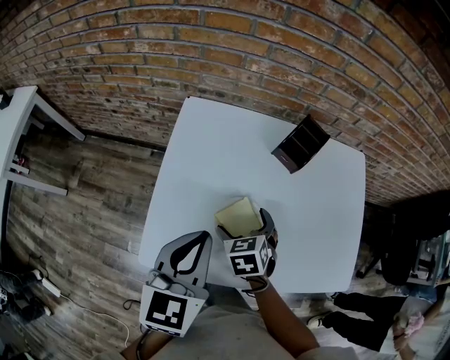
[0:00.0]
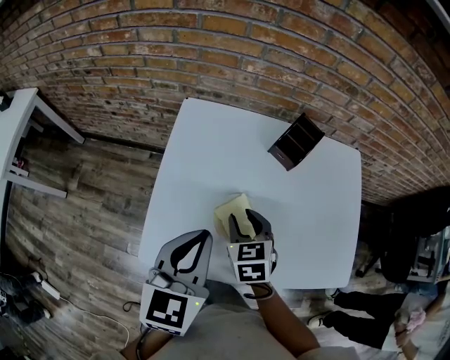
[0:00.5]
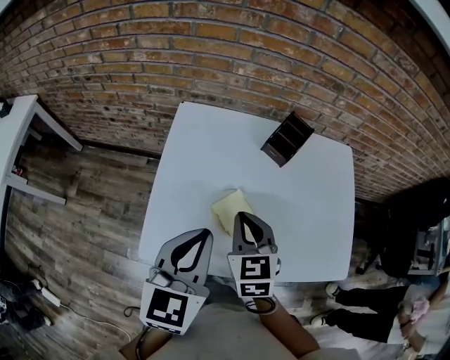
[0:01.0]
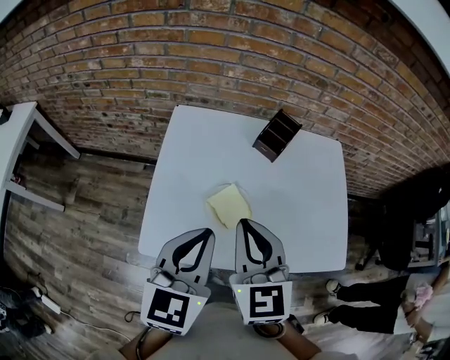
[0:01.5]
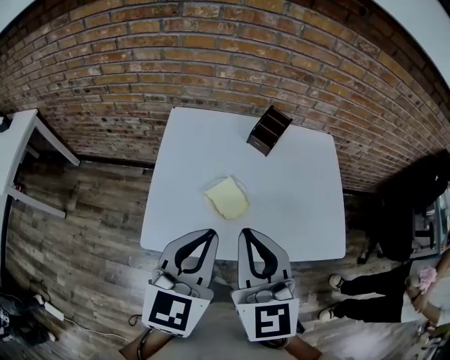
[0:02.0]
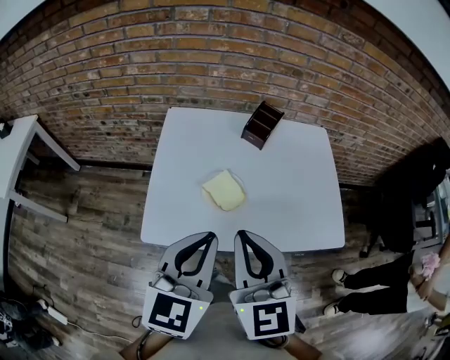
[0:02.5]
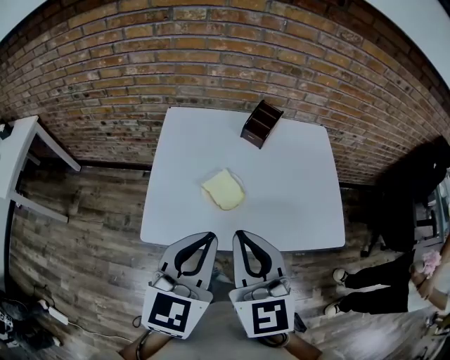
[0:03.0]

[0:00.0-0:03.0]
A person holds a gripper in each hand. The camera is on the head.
0:00.0 to 0:01.5: The left gripper goes roughly 10 cm backward and upward, while the right gripper heads upward and backward, covering some 25 cm, points its fingers roughly 40 degrees further upward, and closes up.
0:01.5 to 0:03.0: The two grippers go some 10 cm backward.

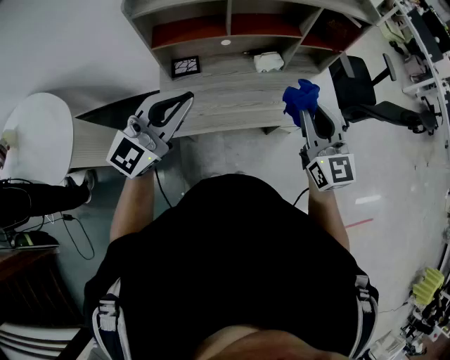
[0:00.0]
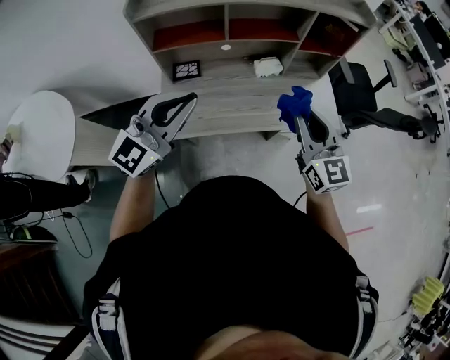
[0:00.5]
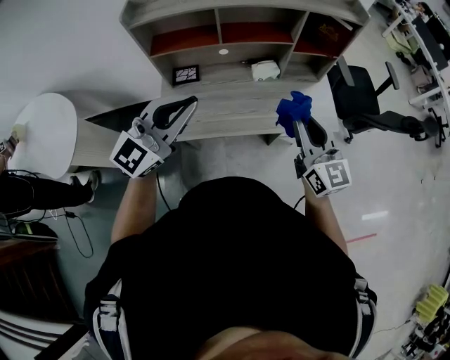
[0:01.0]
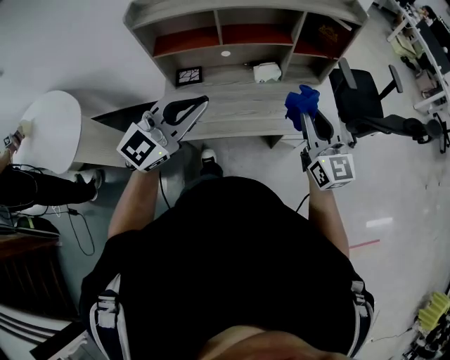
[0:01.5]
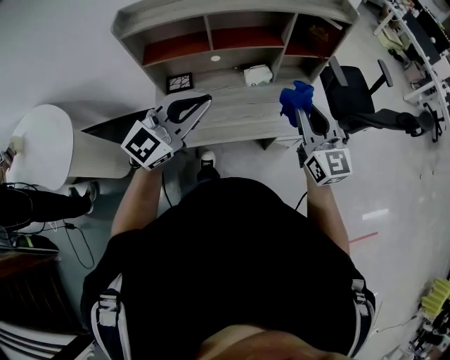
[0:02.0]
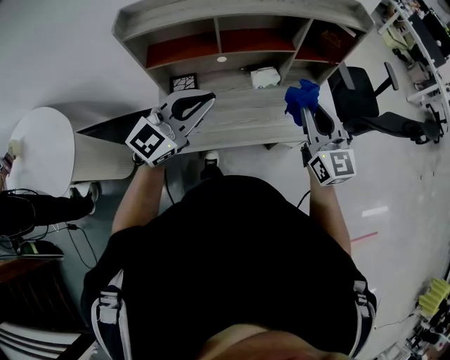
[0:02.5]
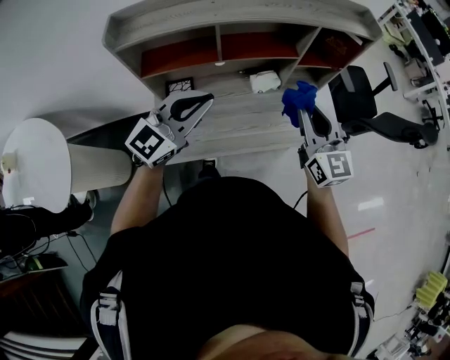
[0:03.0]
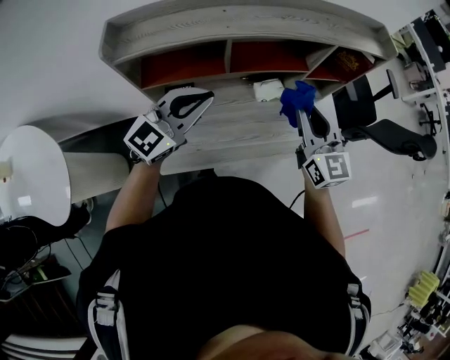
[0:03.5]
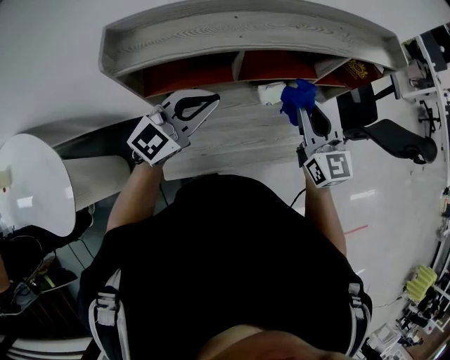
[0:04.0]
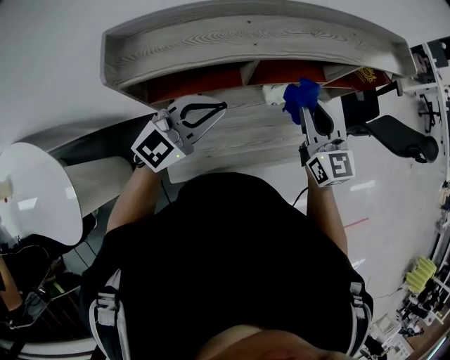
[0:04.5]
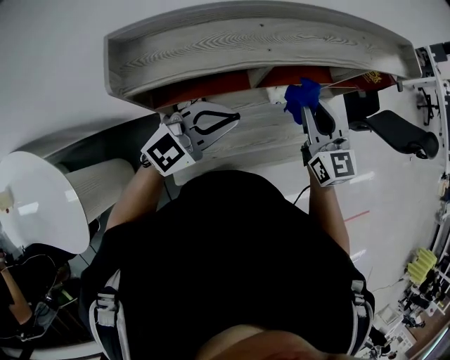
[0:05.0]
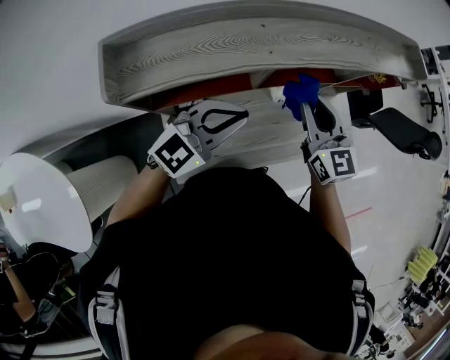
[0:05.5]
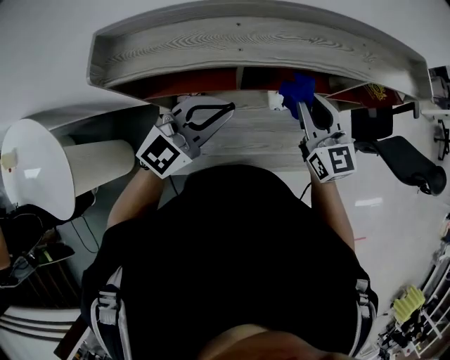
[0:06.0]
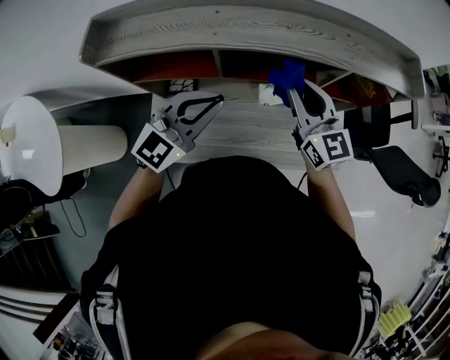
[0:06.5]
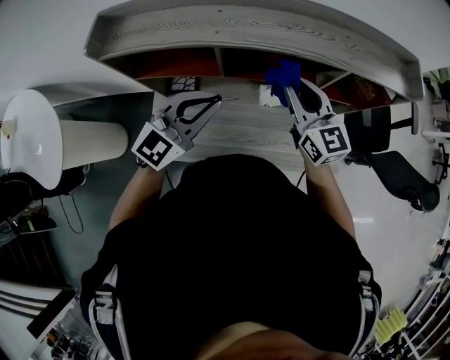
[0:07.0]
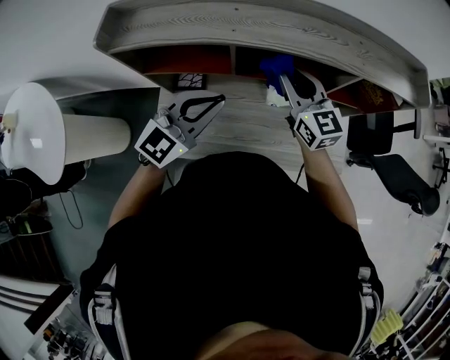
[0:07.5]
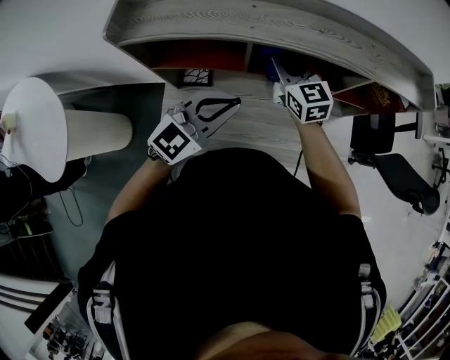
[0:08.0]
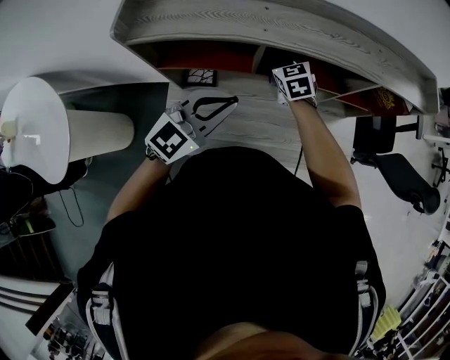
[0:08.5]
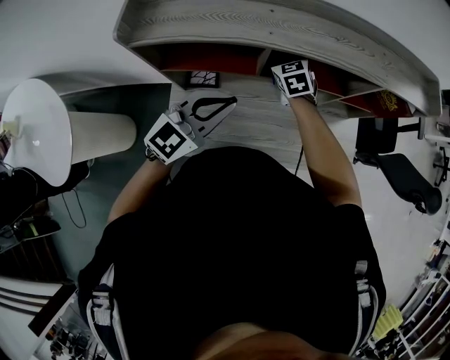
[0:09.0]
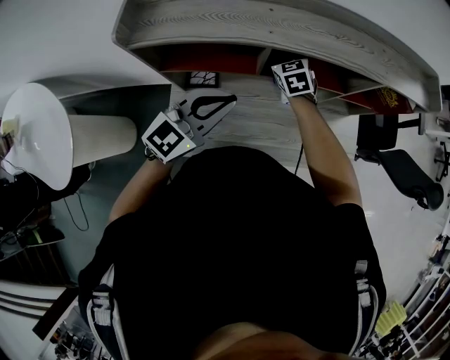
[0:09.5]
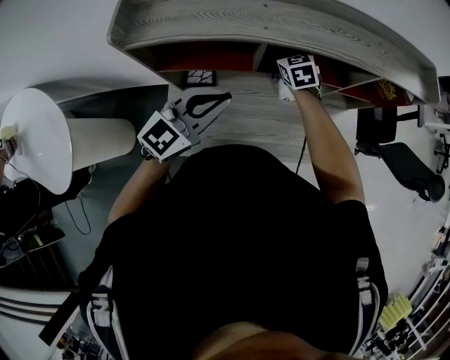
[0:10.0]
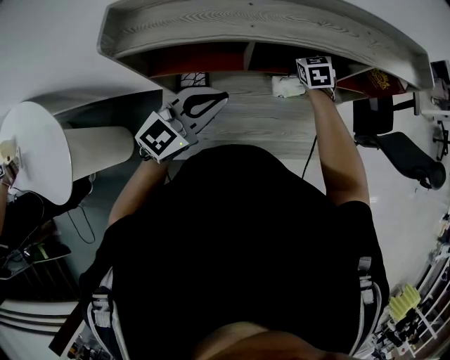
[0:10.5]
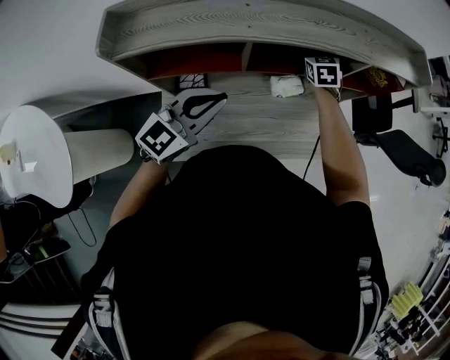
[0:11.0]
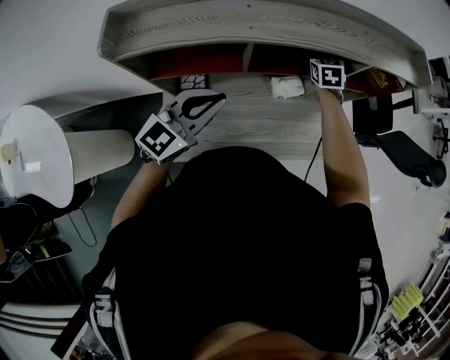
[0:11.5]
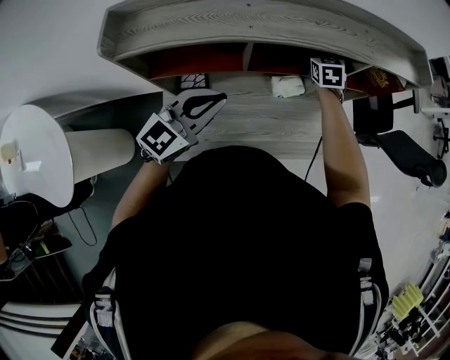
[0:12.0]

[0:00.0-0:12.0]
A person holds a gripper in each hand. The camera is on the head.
0:00.0 to 0:02.0: Both grippers move to the right, some 10 cm.
0:02.0 to 0:04.0: Both grippers travel together forward and to the left, roughly 25 cm.
0:04.0 to 0:06.0: The right gripper is displaced forward by about 10 cm. The left gripper goes some 5 cm forward.
0:06.0 to 0:08.0: The right gripper shifts some 10 cm to the left and forward.
0:08.0 to 0:10.0: The right gripper is displaced downward and forward by about 10 cm, and changes its angle by some 30 degrees. Meanwhile the left gripper shifts approximately 5 cm to the left.
0:10.0 to 0:12.0: The right gripper moves to the right and forward, about 15 cm.

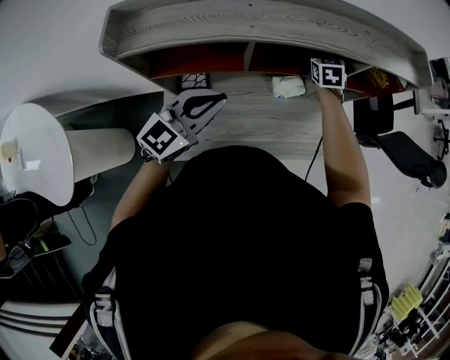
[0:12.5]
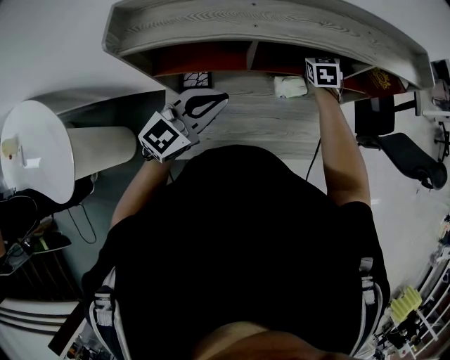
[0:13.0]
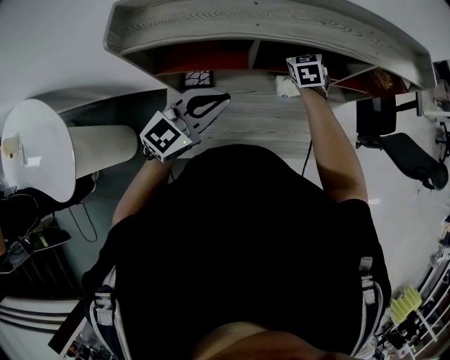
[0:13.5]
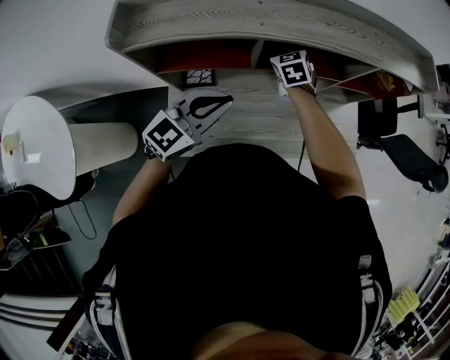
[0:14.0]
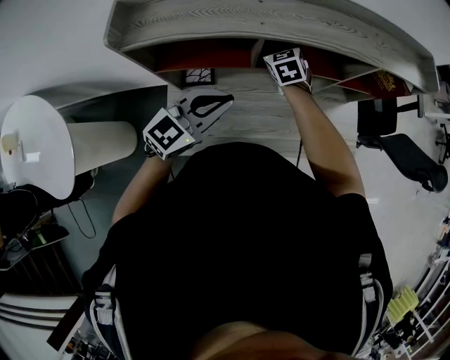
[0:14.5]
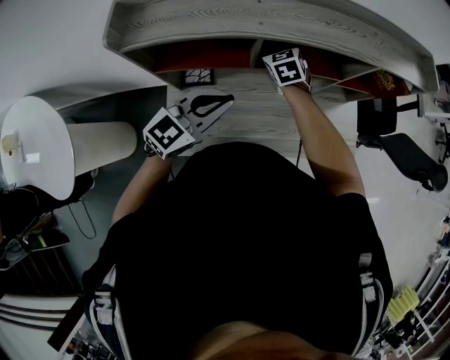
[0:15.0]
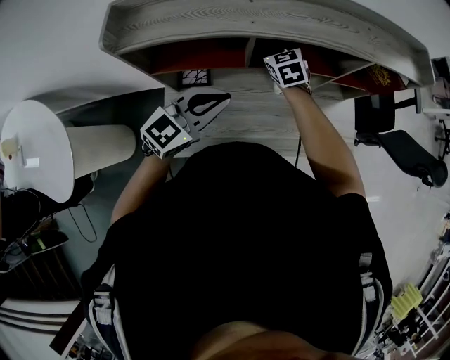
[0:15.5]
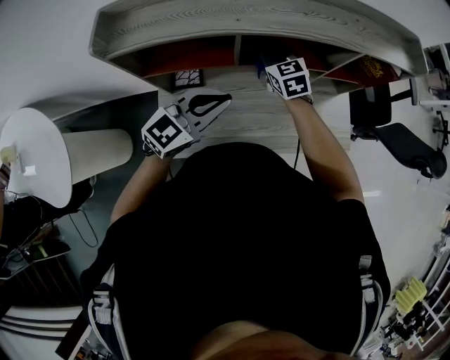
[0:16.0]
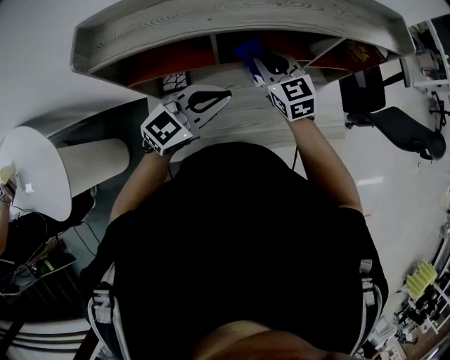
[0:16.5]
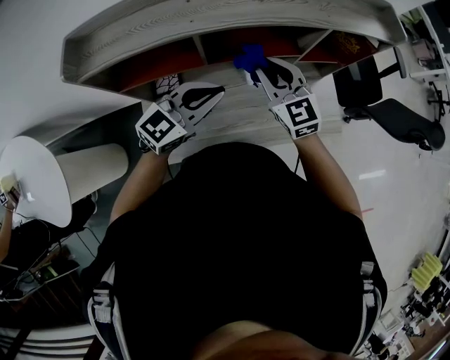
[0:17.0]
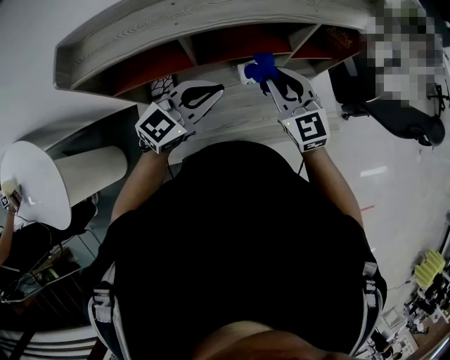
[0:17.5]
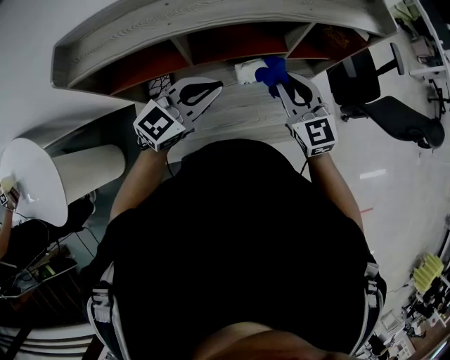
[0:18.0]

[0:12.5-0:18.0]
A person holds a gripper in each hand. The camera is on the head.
0:12.5 to 0:14.5: The right gripper moves to the left and backward, approximately 20 cm.
0:14.5 to 0:16.0: The right gripper ends up roughly 5 cm from where it was.
0:16.0 to 0:18.0: The right gripper travels to the right, backward and upward by roughly 25 cm; the left gripper goes some 10 cm to the right.

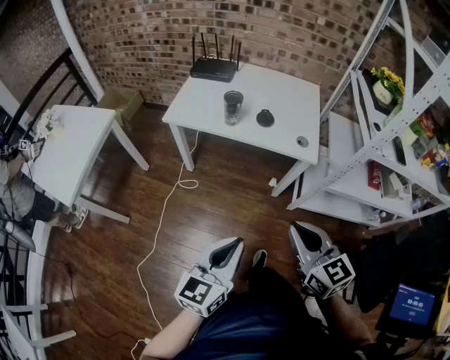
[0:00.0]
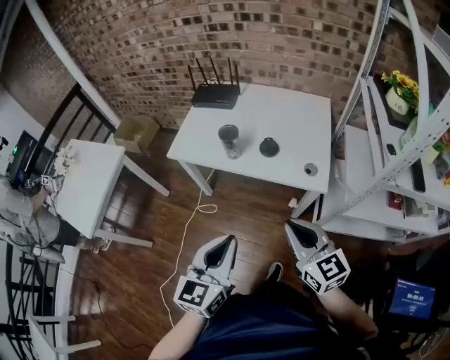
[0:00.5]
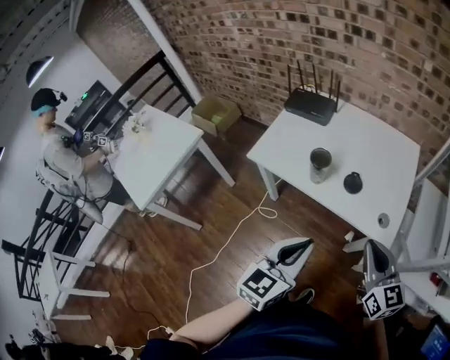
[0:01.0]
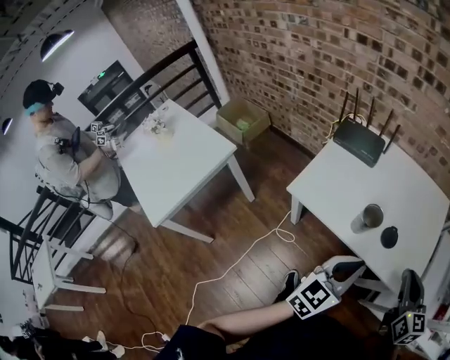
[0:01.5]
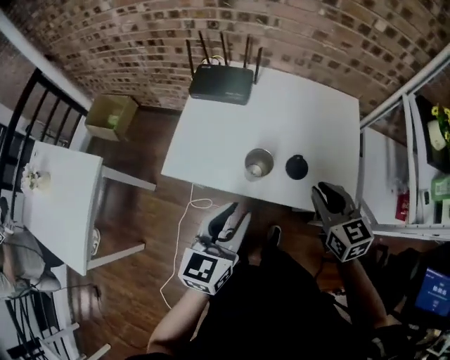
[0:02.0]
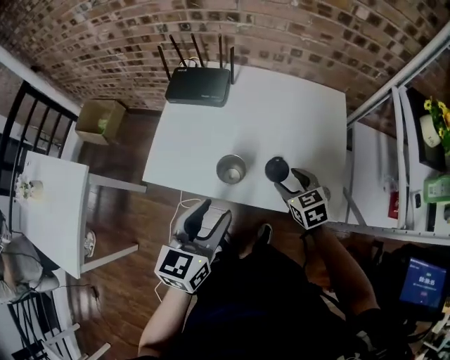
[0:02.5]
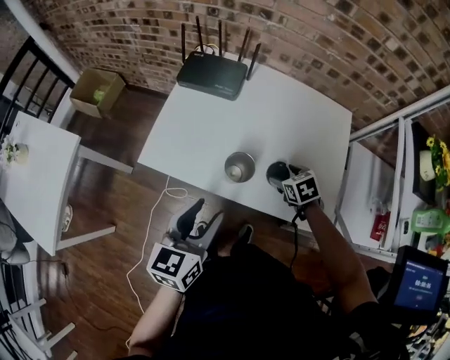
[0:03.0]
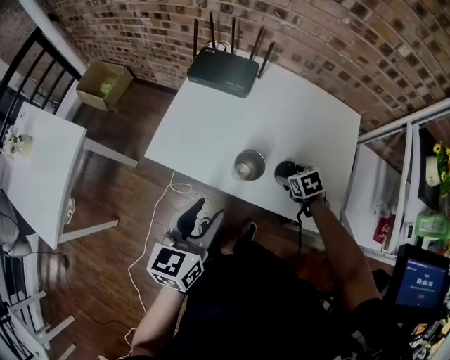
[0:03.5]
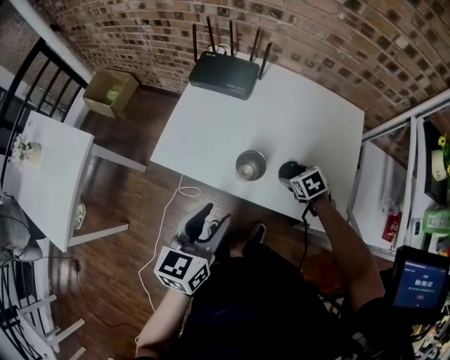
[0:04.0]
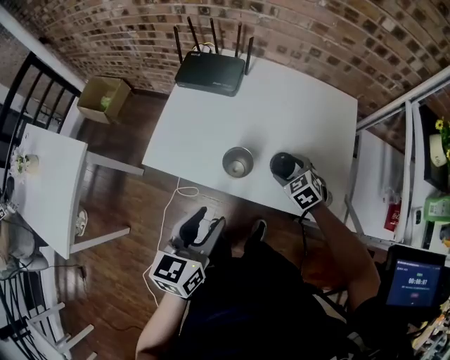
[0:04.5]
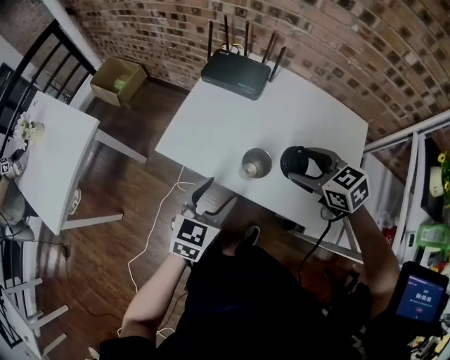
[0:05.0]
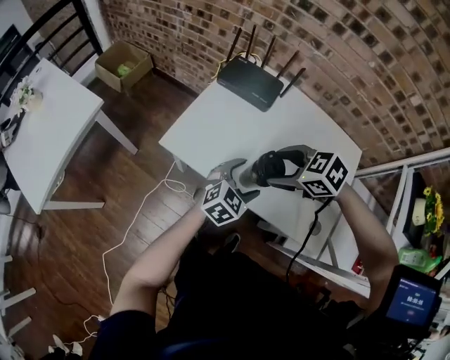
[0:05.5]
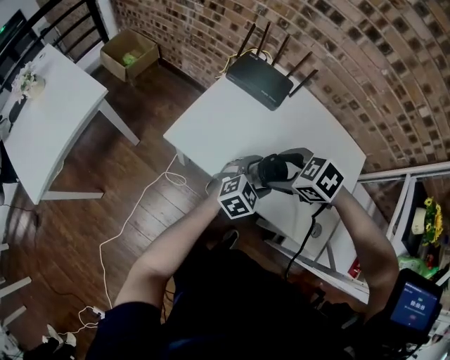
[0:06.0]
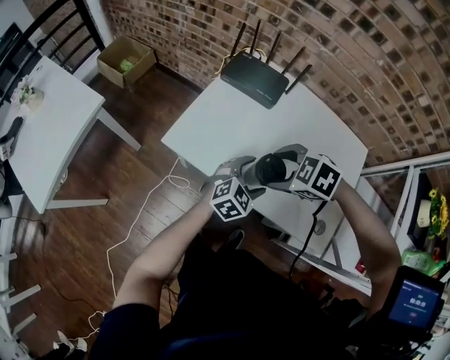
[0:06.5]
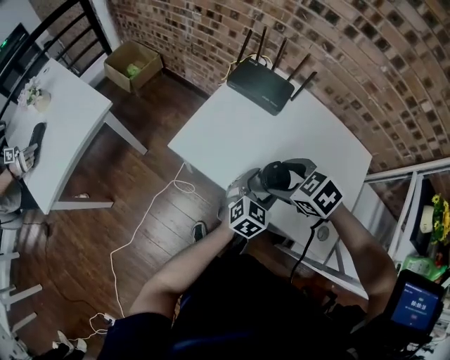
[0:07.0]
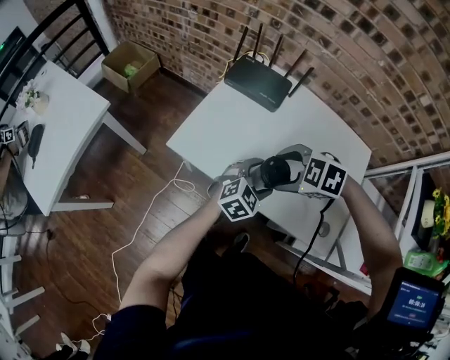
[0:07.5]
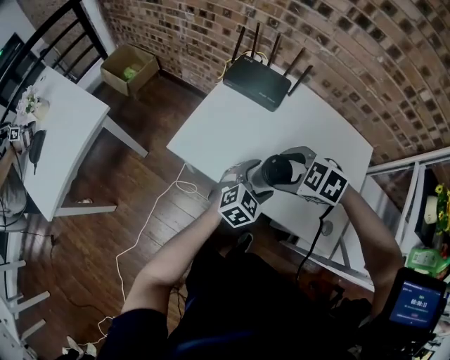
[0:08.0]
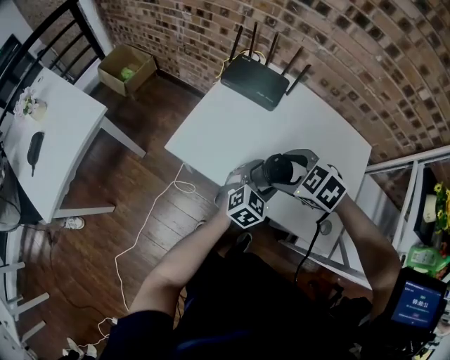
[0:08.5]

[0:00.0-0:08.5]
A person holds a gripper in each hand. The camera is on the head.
0:00.0 to 0:02.0: The two grippers travel together, forward, some 40 cm.
0:02.0 to 0:04.0: The right gripper travels downward by some 25 cm, tilts its fingers approximately 40 degrees downward, and opens up.
0:04.0 to 0:06.5: The left gripper travels downward by roughly 15 cm, changes its angle by some 40 degrees, and opens, while the right gripper changes place by approximately 25 cm, and rotates around the line of its fingers by approximately 50 degrees, counterclockwise from behind.
0:06.5 to 0:08.5: The grippers stay close to where they were, moving slightly.
